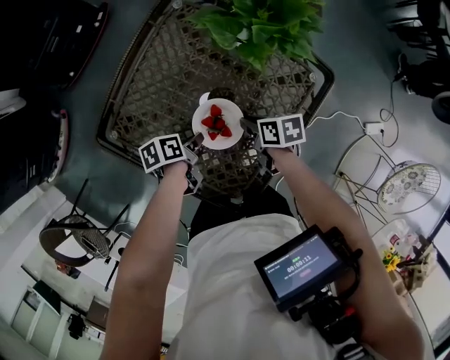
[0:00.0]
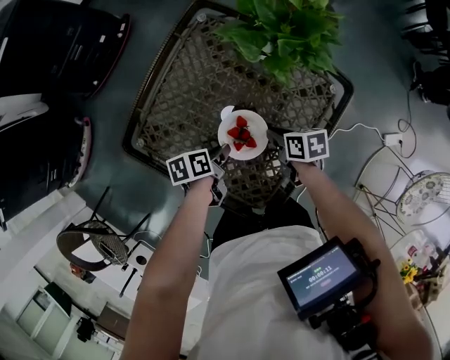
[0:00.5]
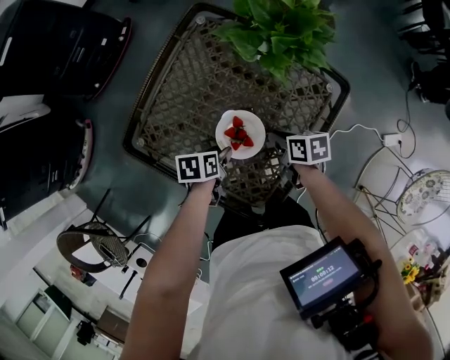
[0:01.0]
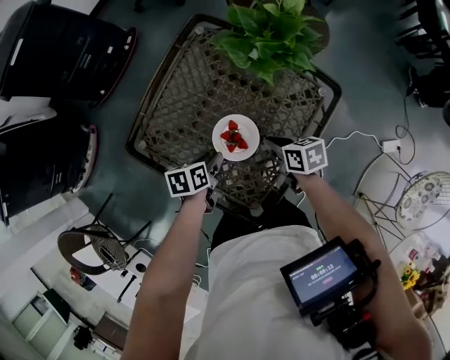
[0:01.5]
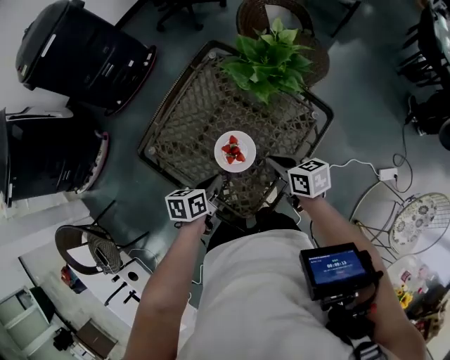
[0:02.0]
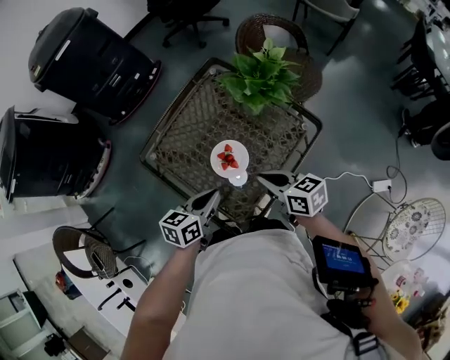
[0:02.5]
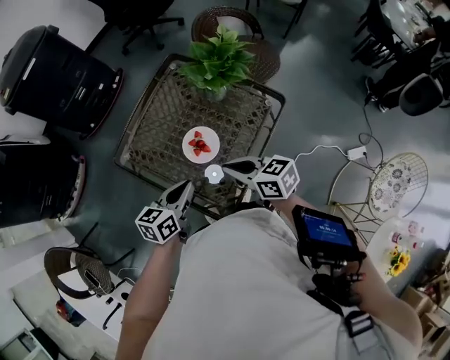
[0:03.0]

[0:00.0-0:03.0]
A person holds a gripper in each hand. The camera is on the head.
0:00.0 to 0:01.5: The right gripper changes place by some 5 cm.
0:01.5 to 0:03.0: The right gripper shifts some 20 cm upward, and turns by approximately 30 degrees.

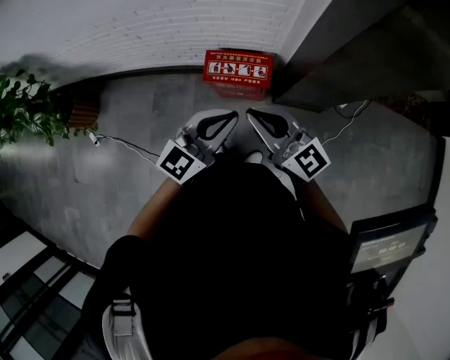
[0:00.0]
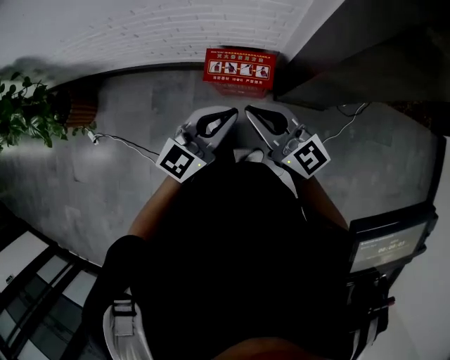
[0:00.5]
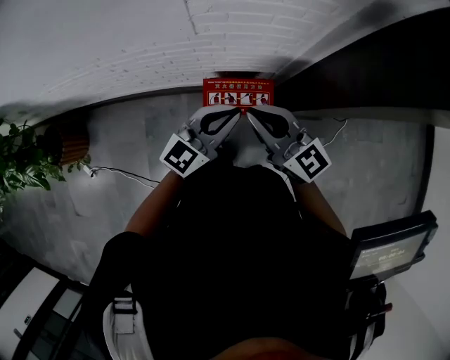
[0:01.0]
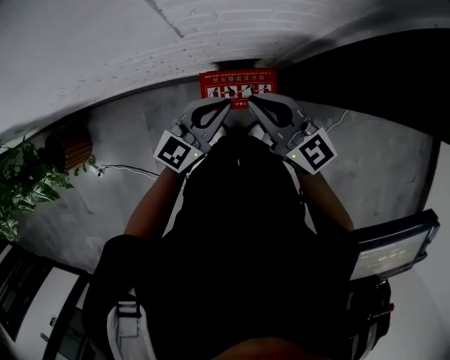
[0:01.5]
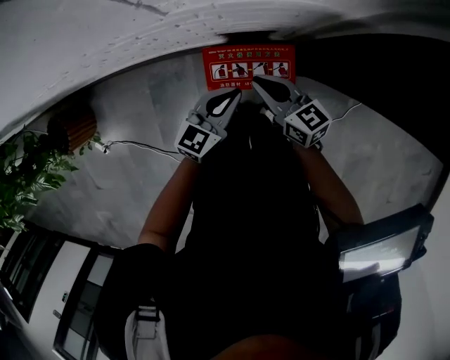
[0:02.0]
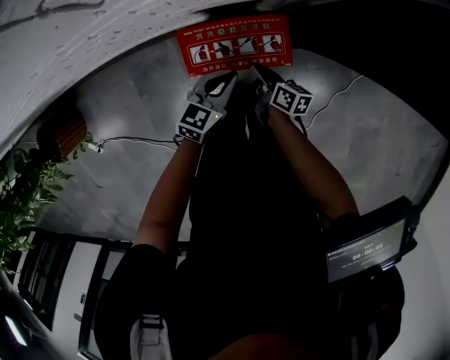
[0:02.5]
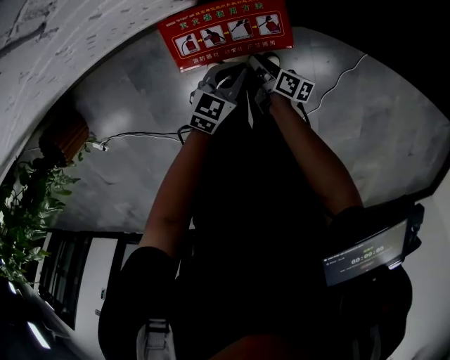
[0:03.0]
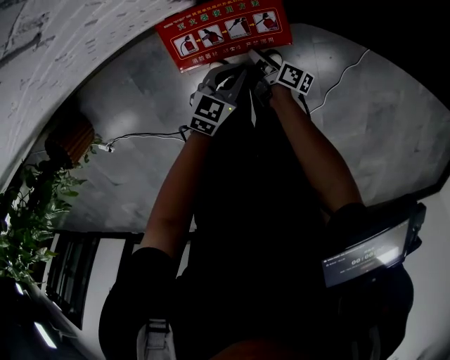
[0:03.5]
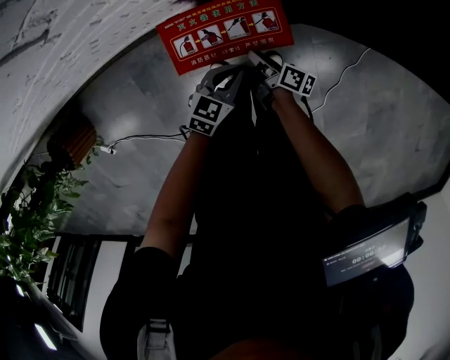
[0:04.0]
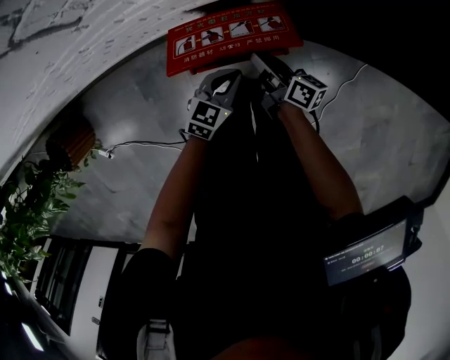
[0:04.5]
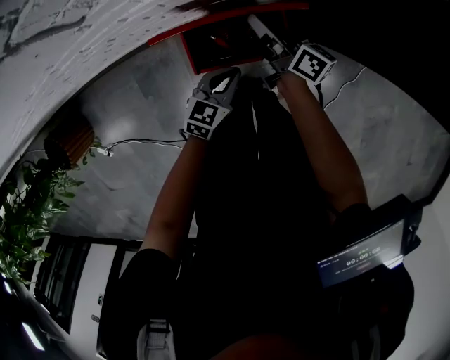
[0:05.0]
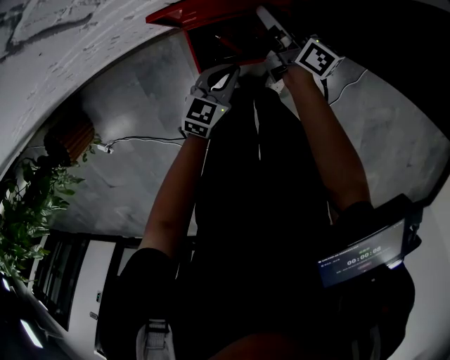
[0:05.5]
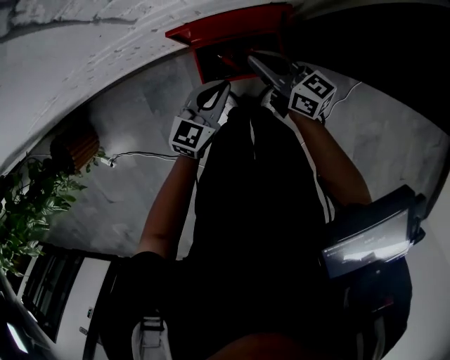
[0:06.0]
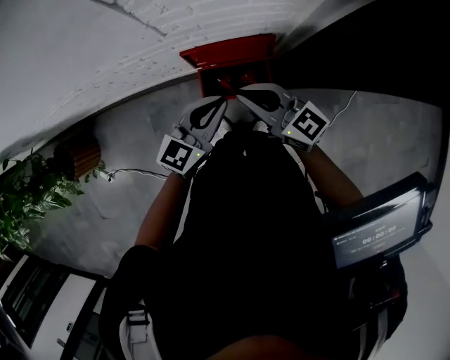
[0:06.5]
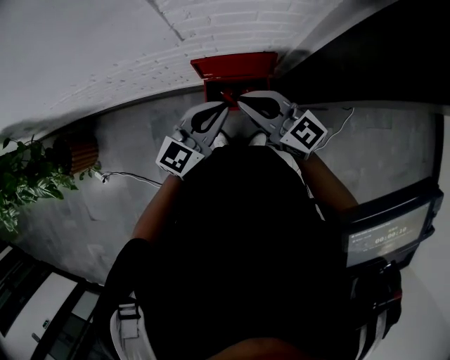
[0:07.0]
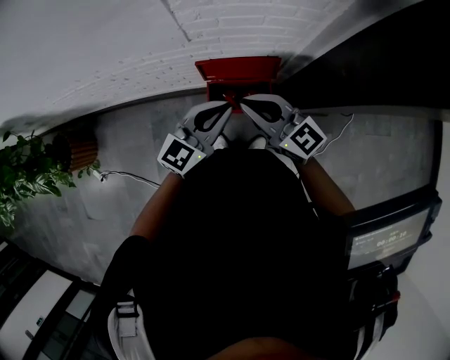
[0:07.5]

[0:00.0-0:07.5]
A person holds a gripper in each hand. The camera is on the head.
0:00.0 to 0:02.0: The left gripper moves downward and forward, some 40 cm. Meanwhile the right gripper moves forward and downward, approximately 40 cm, and changes its angle by roughly 30 degrees.
0:02.0 to 0:04.0: Both grippers travel together downward, approximately 25 cm. The left gripper swivels about 30 degrees. The right gripper rolls clockwise, seen from behind, by approximately 60 degrees.
0:04.0 to 0:05.5: The left gripper heads to the left and forward, covering approximately 10 cm; the right gripper moves forward and upward, some 25 cm, and rotates some 30 degrees.
0:05.5 to 0:07.5: The right gripper shifts about 40 cm upward and backward, and rotates around the line of its fingers by about 50 degrees, counterclockwise from behind. Meanwhile the left gripper moves upward, some 40 cm, and rotates roughly 30 degrees.

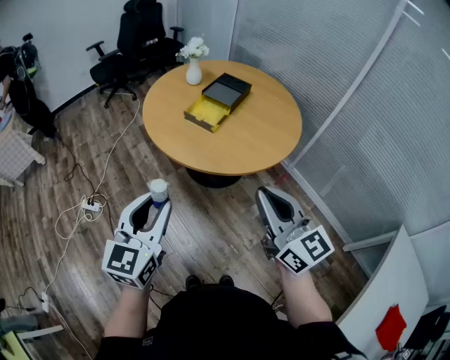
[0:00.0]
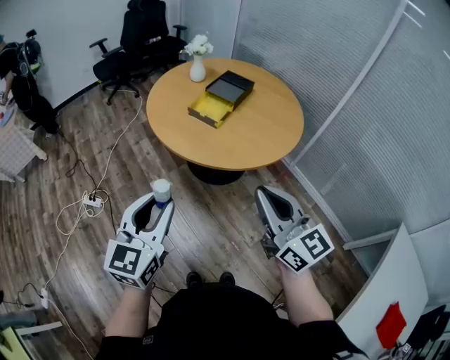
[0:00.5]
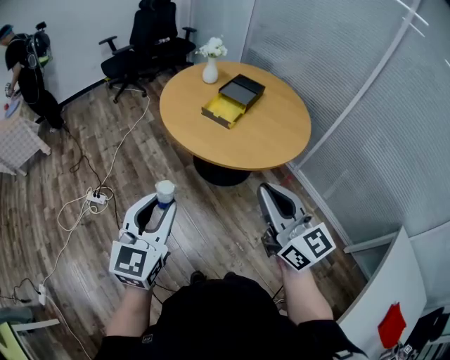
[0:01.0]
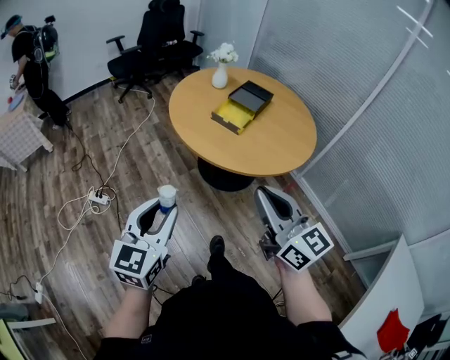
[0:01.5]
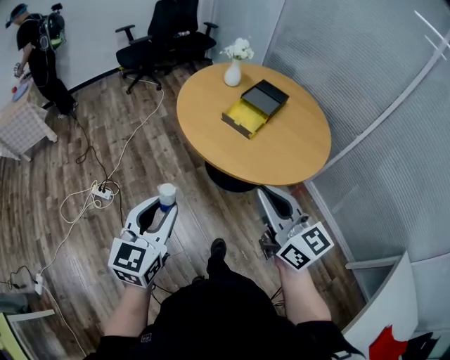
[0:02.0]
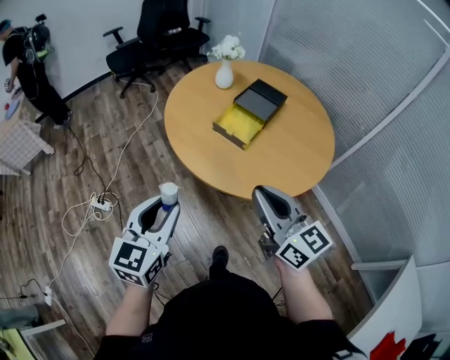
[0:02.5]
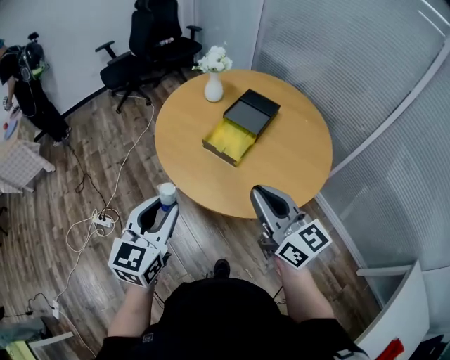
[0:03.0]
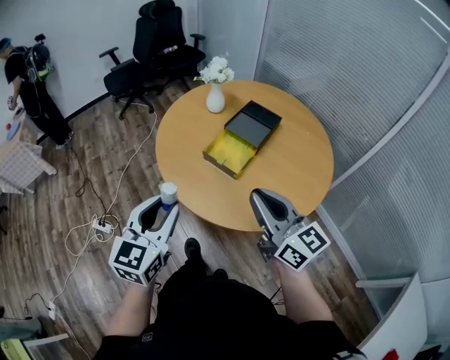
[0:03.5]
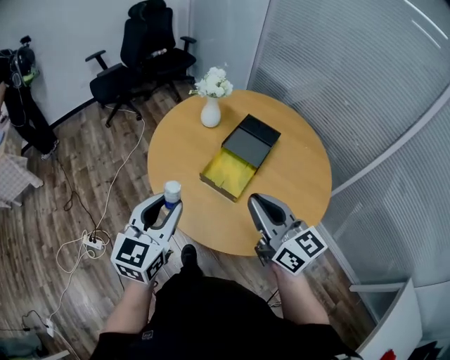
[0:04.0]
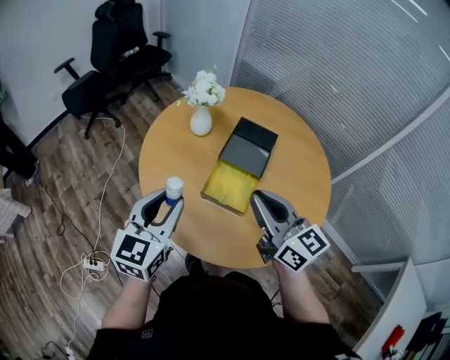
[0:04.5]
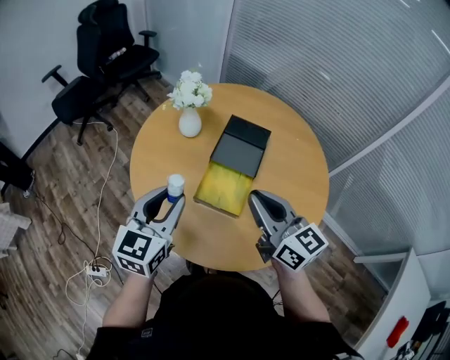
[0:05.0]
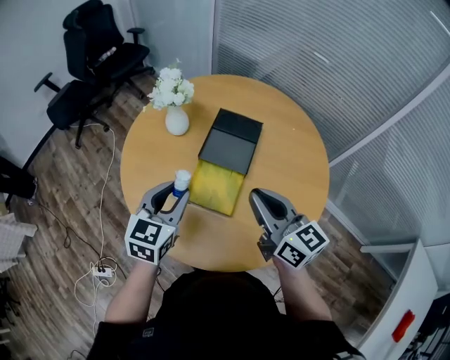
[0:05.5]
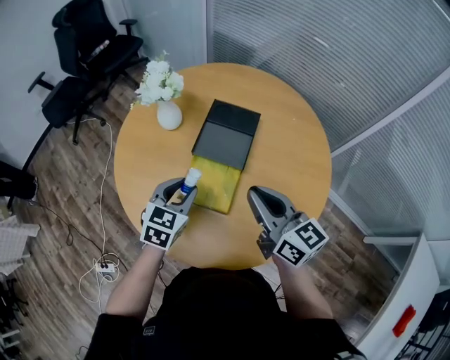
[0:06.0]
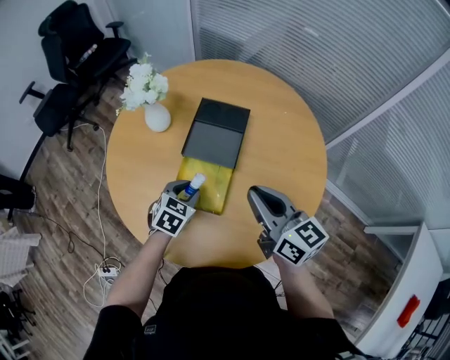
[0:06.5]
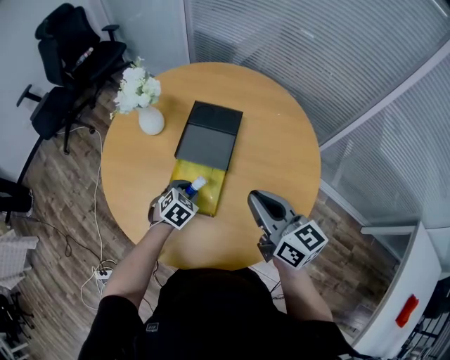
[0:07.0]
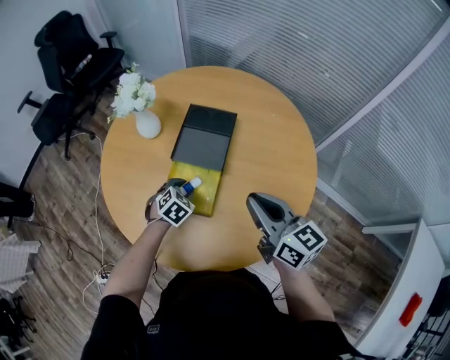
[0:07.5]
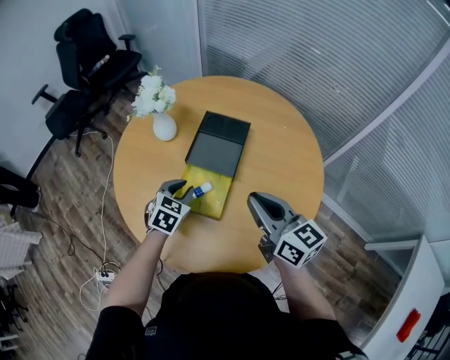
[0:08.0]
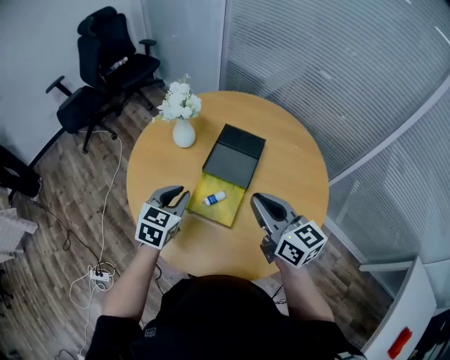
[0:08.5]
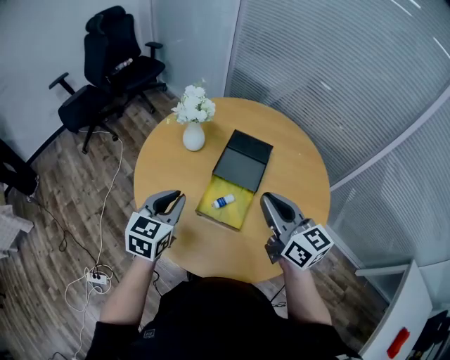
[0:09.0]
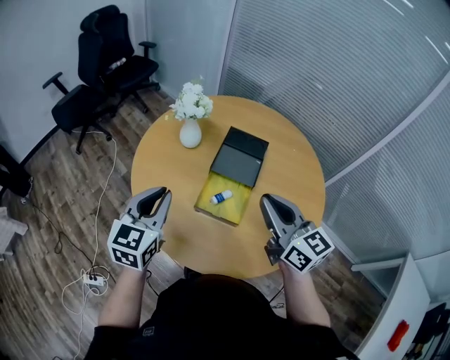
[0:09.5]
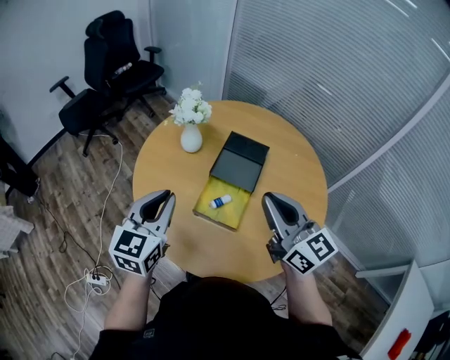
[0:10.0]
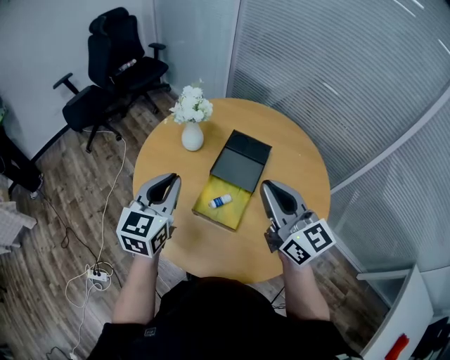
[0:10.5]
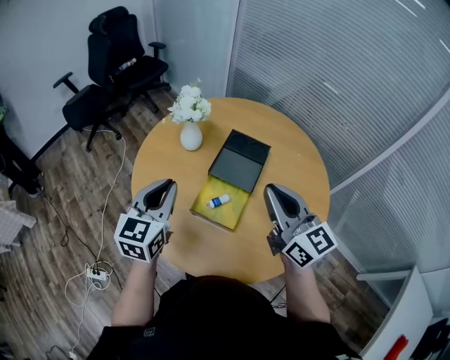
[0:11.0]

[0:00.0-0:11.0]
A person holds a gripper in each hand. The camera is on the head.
0:00.0 to 0:02.0: The right gripper moves to the left and forward, approximately 15 cm. Meanwhile the left gripper goes about 15 cm to the left.
0:02.0 to 0:03.5: Both grippers move forward and to the right, about 25 cm.
0:03.5 to 0:05.5: Both grippers move forward, approximately 25 cm. The left gripper rotates roughly 20 degrees. The right gripper swivels about 20 degrees.
0:05.5 to 0:07.5: The left gripper is displaced downward by some 25 cm, and tips its fingers downward by approximately 40 degrees; the right gripper moves to the right, approximately 10 cm.
0:07.5 to 0:09.0: The right gripper heads to the left and upward, covering approximately 10 cm, while the left gripper shifts about 30 cm upward and to the left, angles its fingers upward, by about 40 degrees, and closes up.
0:09.0 to 0:11.0: The left gripper shifts some 5 cm upward.

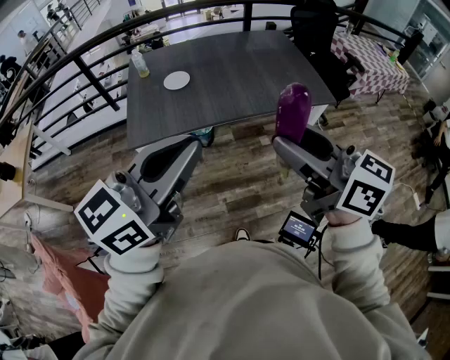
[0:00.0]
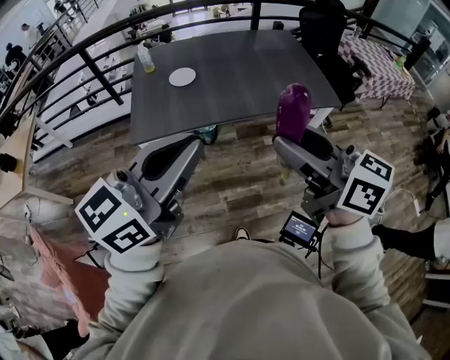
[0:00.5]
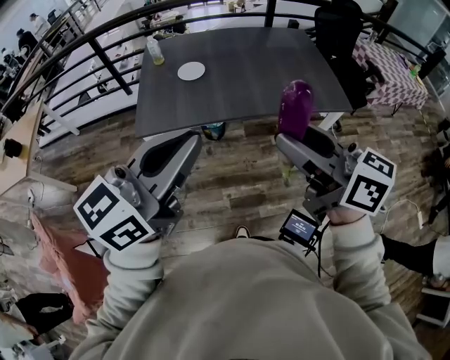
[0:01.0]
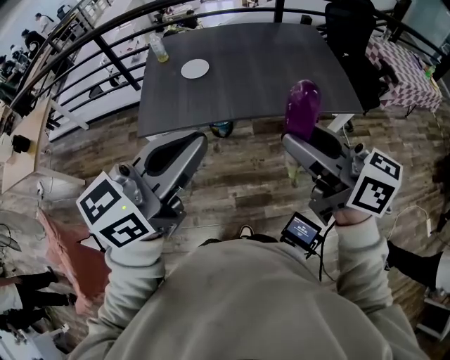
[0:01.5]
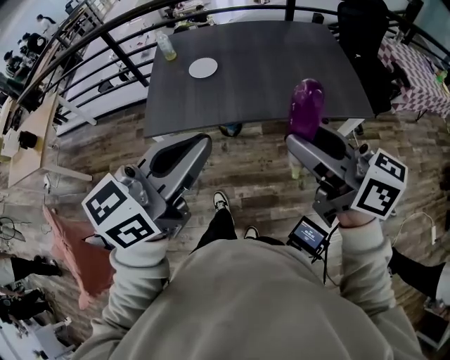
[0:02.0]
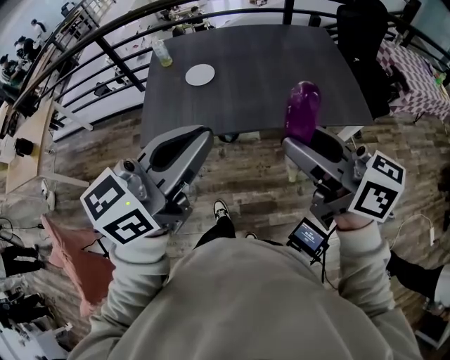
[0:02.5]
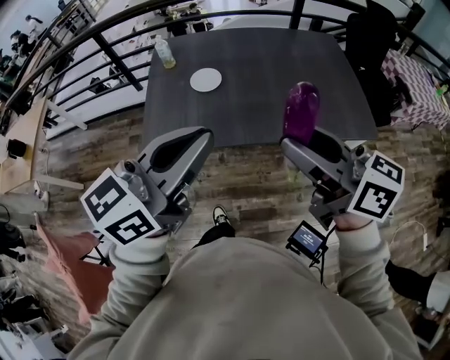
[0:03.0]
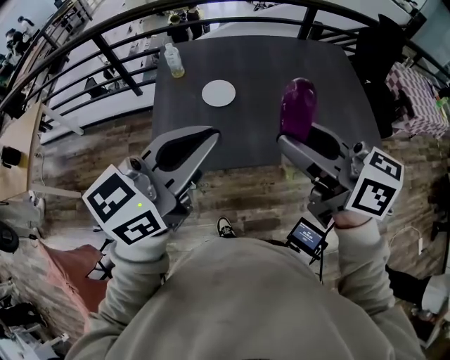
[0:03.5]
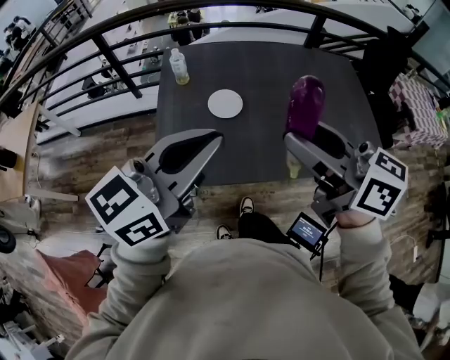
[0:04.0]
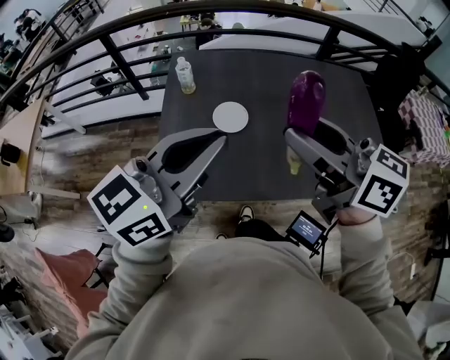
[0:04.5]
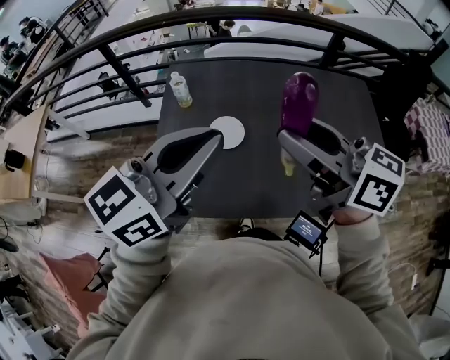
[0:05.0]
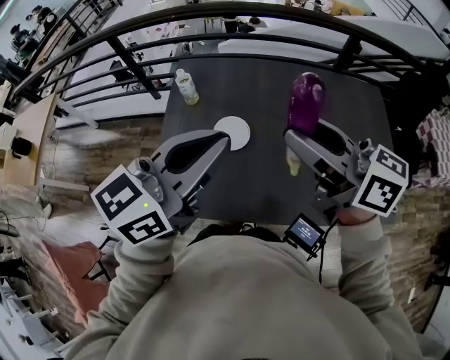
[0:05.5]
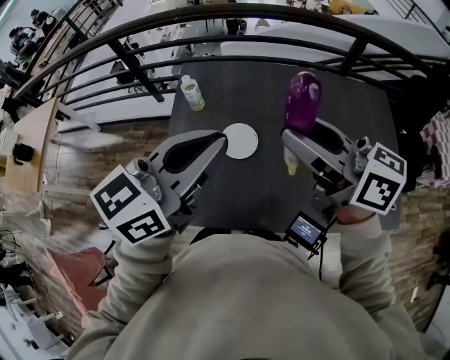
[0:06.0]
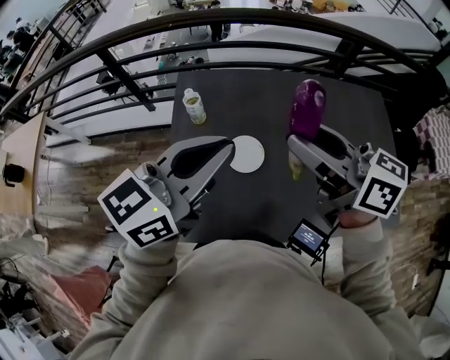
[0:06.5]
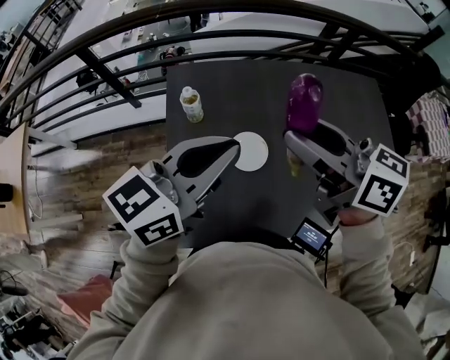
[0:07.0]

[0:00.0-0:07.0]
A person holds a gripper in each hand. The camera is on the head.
0:00.0 to 0:02.0: Both grippers travel together forward, about 10 cm.
0:02.0 to 0:03.5: Both grippers travel together forward and to the left, about 30 cm.
0:03.5 to 0:05.0: Both grippers move forward, approximately 15 cm.
0:05.0 to 0:07.0: The grippers both shift forward, to the left and downward by roughly 20 cm.
